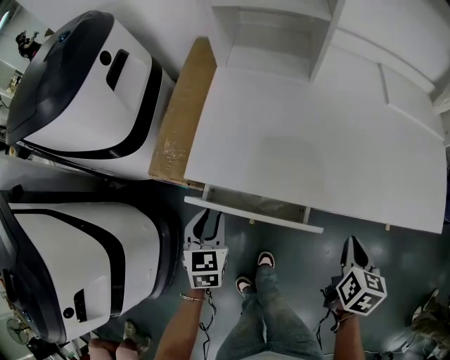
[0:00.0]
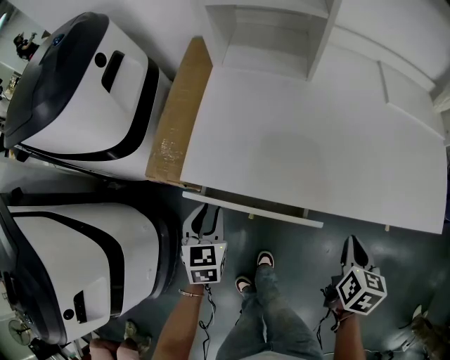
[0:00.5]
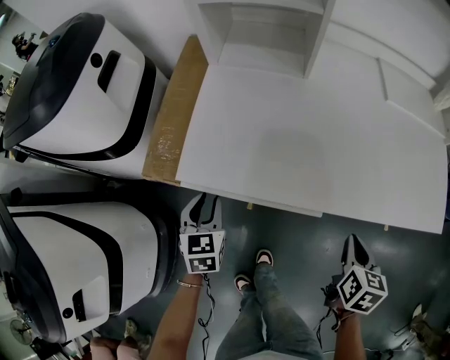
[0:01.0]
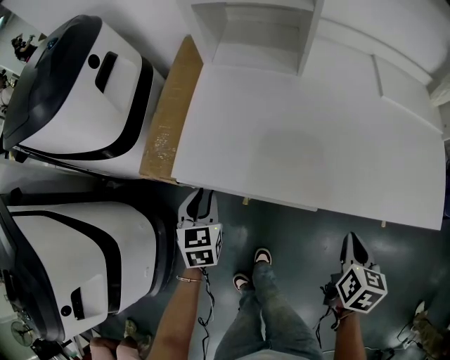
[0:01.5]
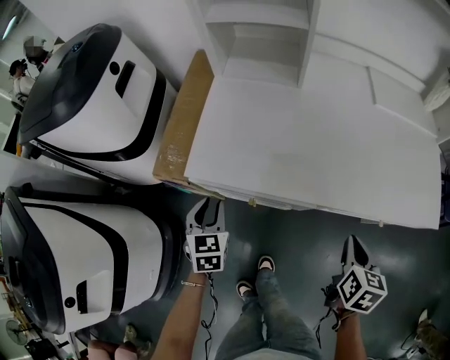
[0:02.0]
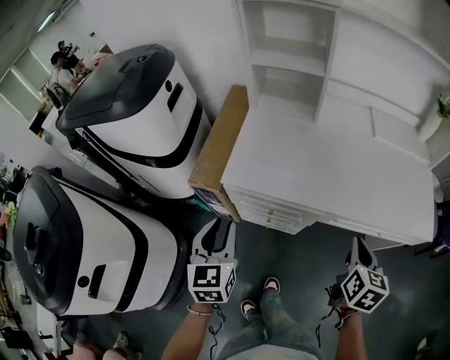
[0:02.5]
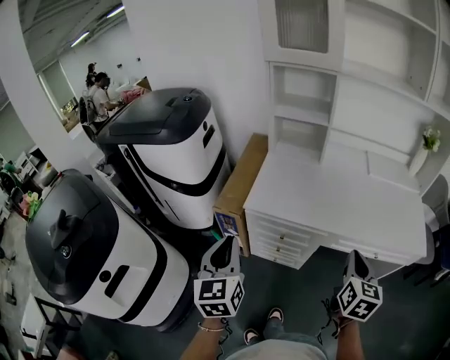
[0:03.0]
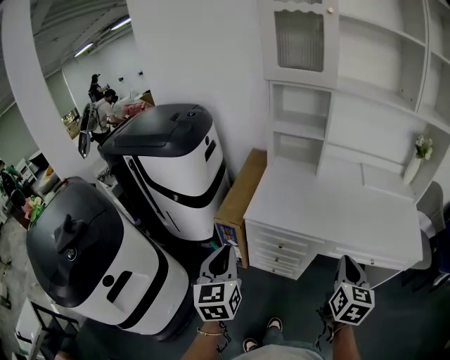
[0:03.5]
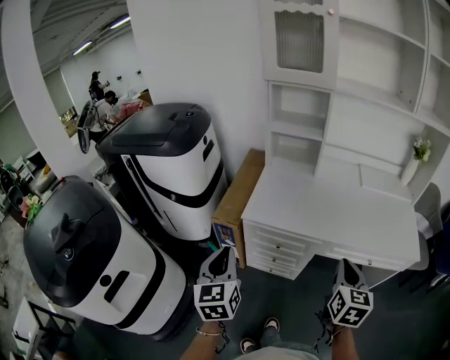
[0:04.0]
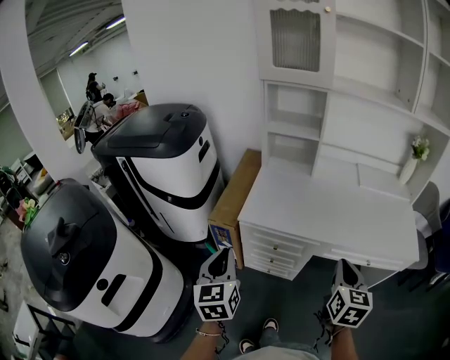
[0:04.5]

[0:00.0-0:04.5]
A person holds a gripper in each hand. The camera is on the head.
0:00.0 to 0:02.0: The grippers make only small movements.
0:02.0 to 0:04.5: The right gripper is displaced upward, to the left and backward by approximately 25 cm, and rotates approximately 30 degrees. Meanwhile the left gripper goes roughly 30 cm upward and backward, swivels about 30 degrees, and closes its fingers.

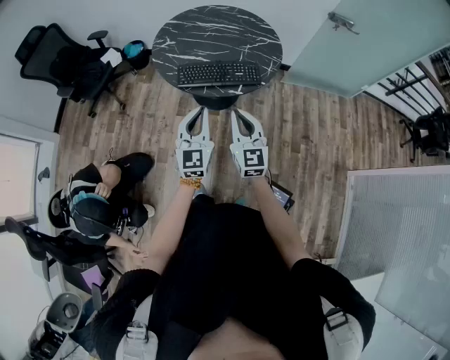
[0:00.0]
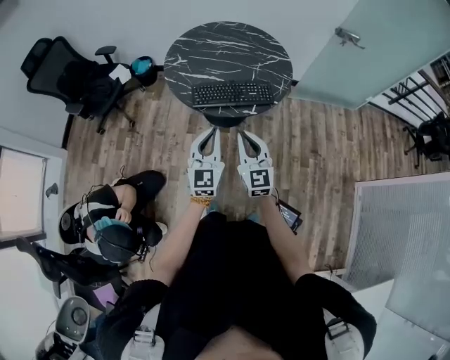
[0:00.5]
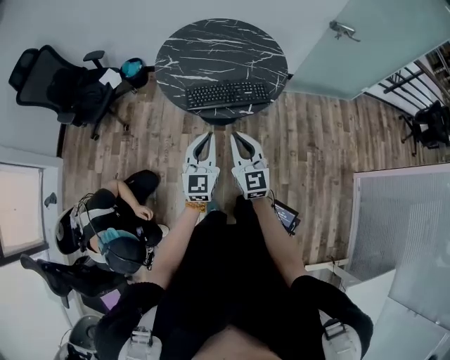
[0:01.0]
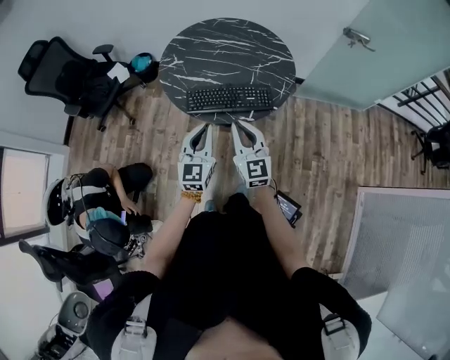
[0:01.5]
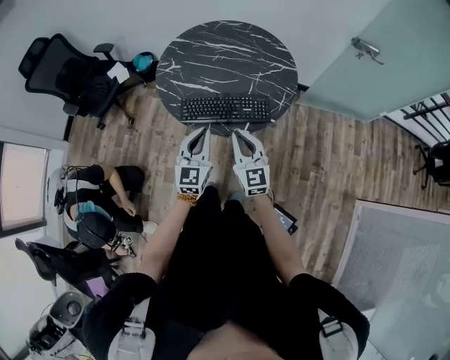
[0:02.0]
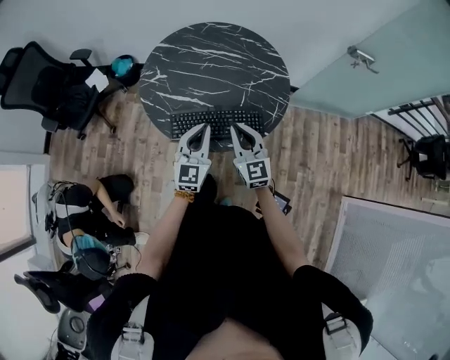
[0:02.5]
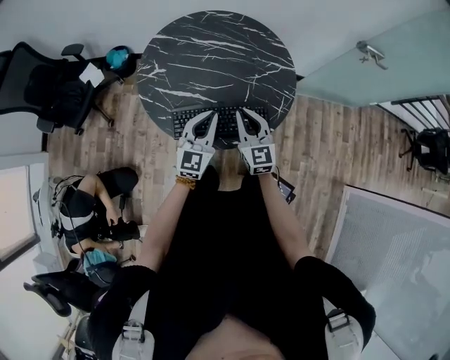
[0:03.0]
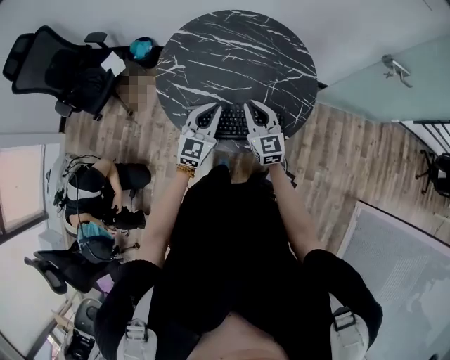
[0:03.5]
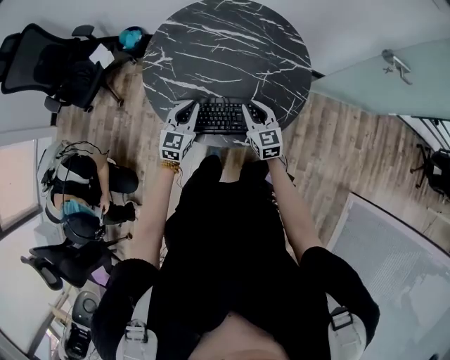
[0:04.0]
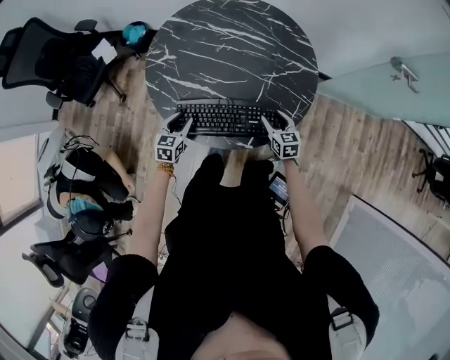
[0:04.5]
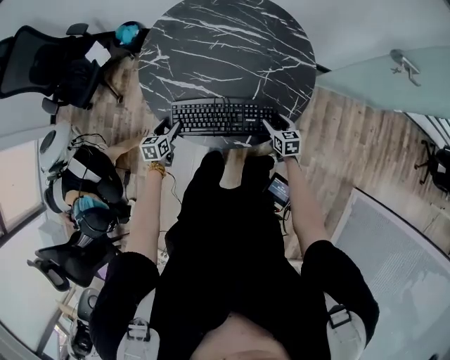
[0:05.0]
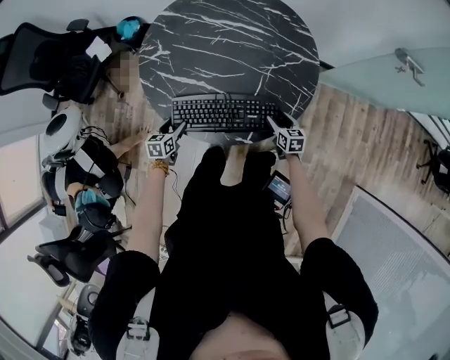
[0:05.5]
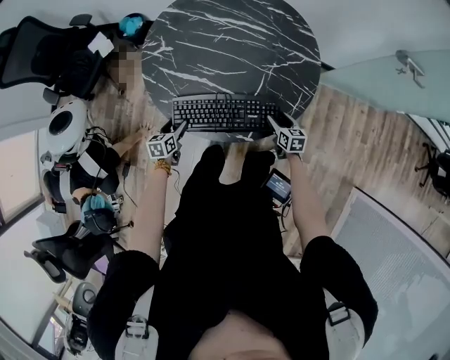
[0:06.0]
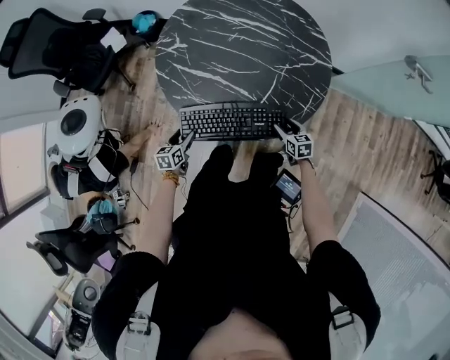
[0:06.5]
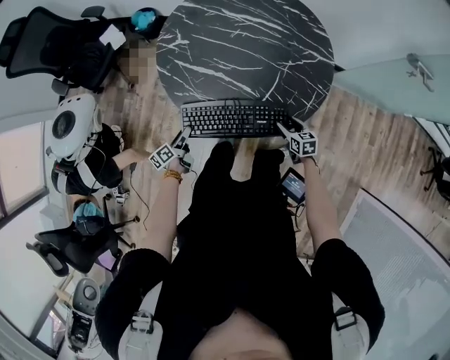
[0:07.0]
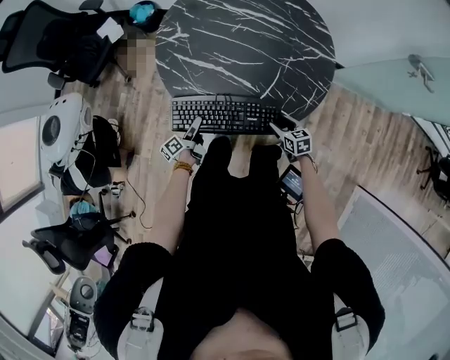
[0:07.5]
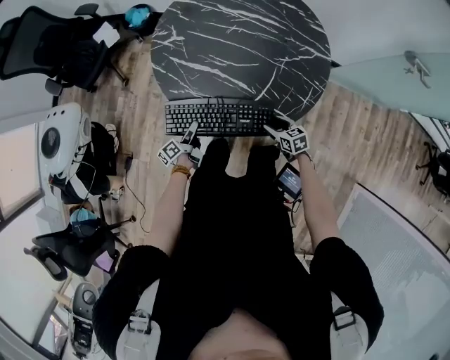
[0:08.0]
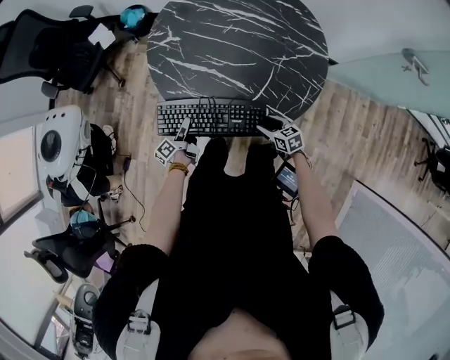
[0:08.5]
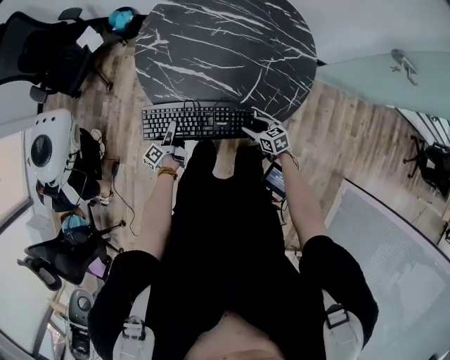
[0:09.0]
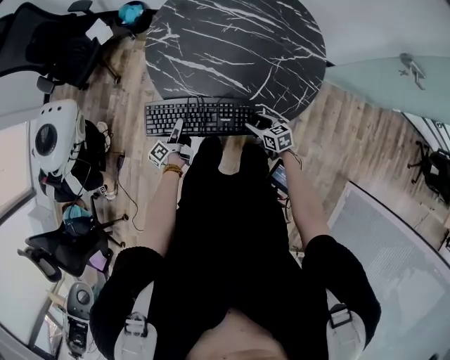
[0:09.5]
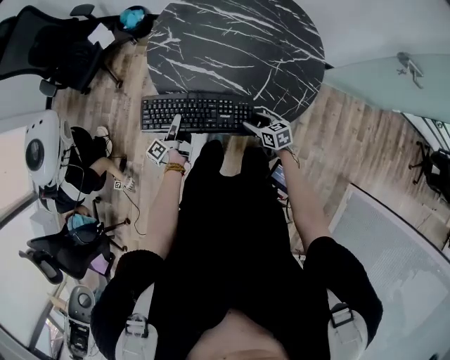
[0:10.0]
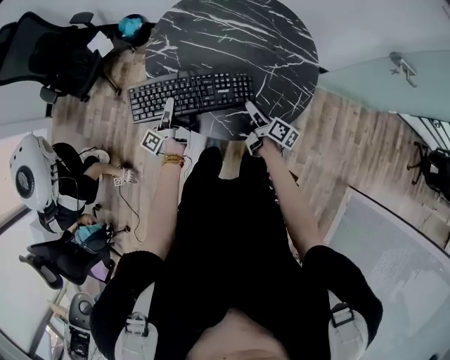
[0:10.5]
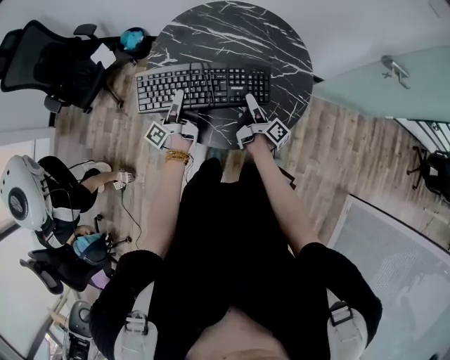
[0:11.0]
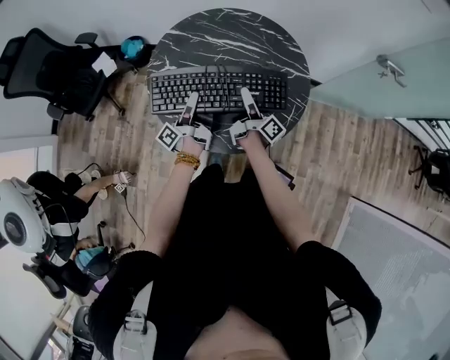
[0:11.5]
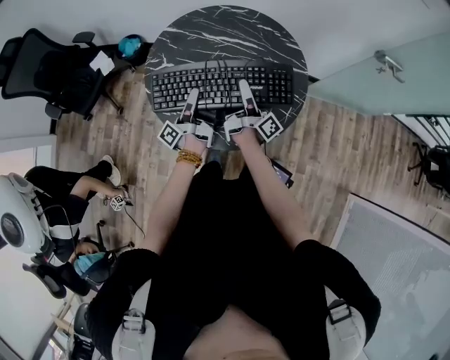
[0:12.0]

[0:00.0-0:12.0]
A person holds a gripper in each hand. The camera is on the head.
0:00.0 to 0:02.0: Both grippers move forward, roughly 15 cm.
0:02.0 to 0:04.0: The grippers both shift forward and downward by roughly 25 cm.
0:04.0 to 0:06.0: The right gripper shifts approximately 25 cm downward and to the right, turns by approximately 30 degrees, and opens up. The left gripper travels downward and to the left by approximately 20 cm, turns by roughly 40 degrees, and opens.
0:06.0 to 0:08.0: The left gripper shifts by roughly 5 cm, and rotates around the line of its fingers by approximately 50 degrees, counterclockwise from behind. Meanwhile the right gripper goes about 10 cm to the left and backward, and swivels some 20 degrees.
0:08.0 to 0:10.0: The right gripper goes roughly 5 cm to the left. The left gripper moves upward, roughly 5 cm.
0:10.0 to 0:12.0: The right gripper shifts roughly 30 cm upward and forward, and points its fingers approximately 60 degrees further upward; the left gripper goes roughly 25 cm upward, to the right and forward, and changes its angle by some 30 degrees.

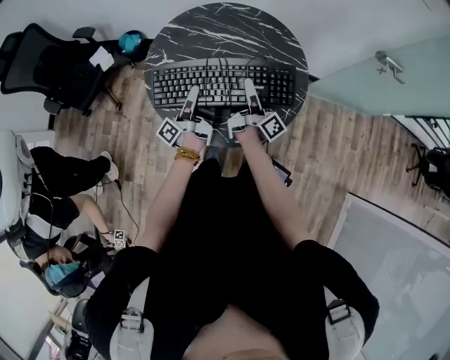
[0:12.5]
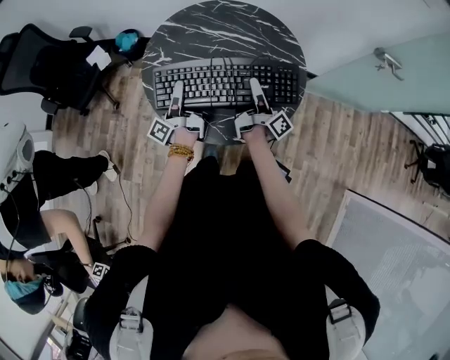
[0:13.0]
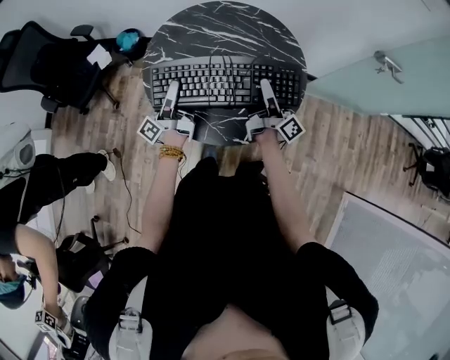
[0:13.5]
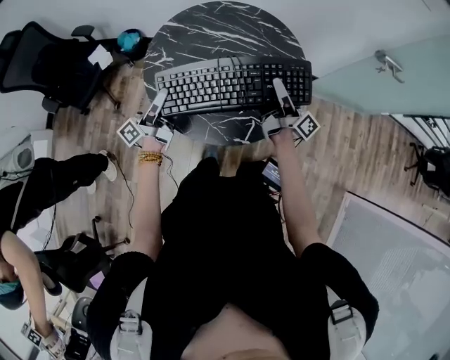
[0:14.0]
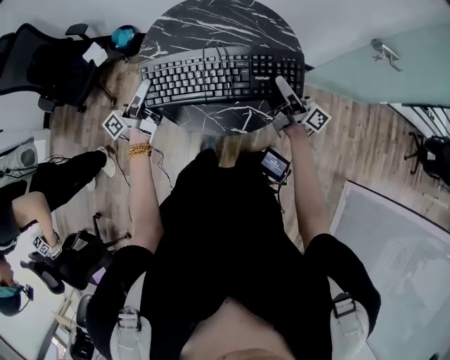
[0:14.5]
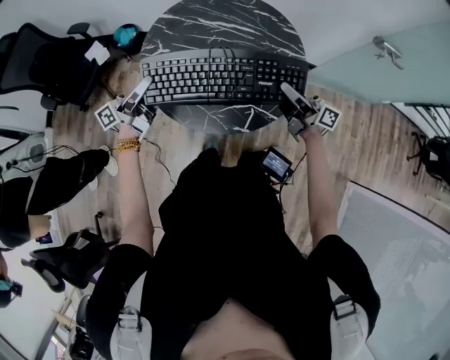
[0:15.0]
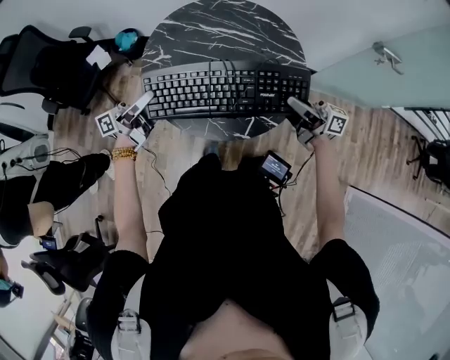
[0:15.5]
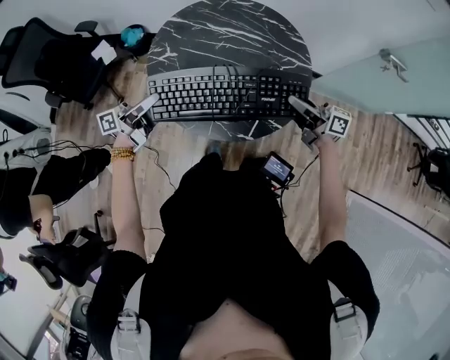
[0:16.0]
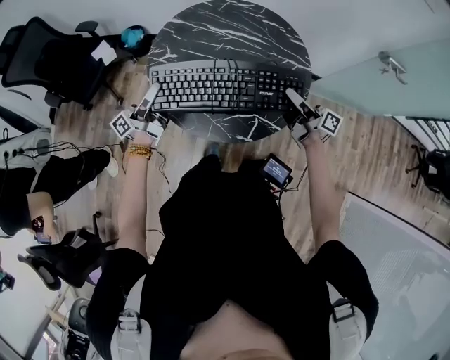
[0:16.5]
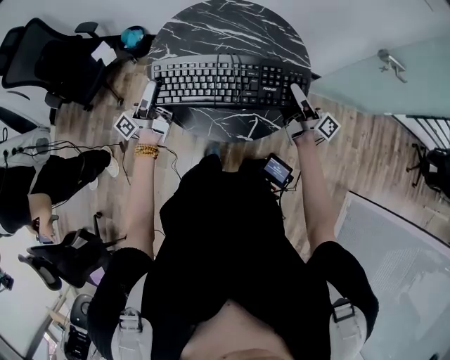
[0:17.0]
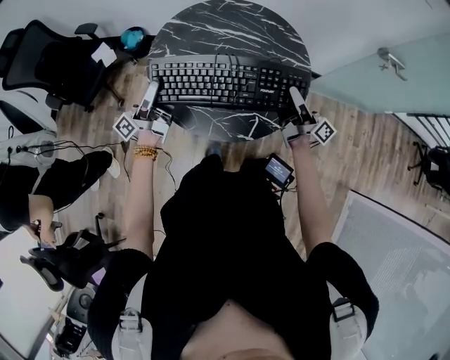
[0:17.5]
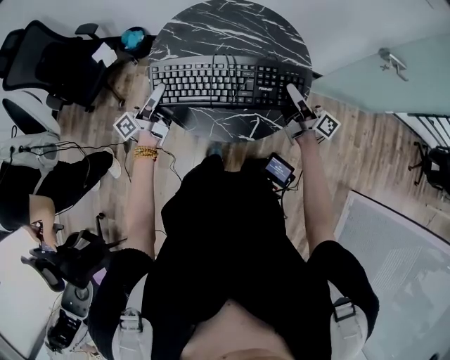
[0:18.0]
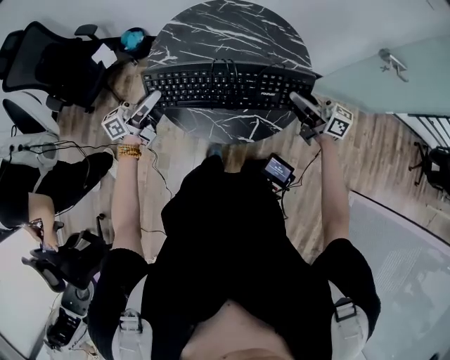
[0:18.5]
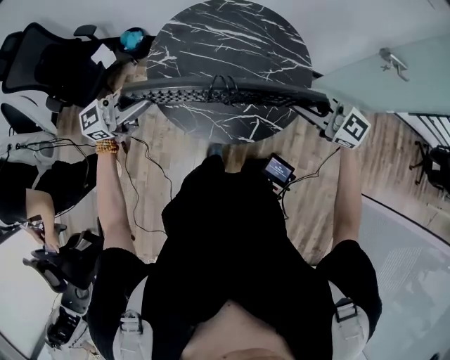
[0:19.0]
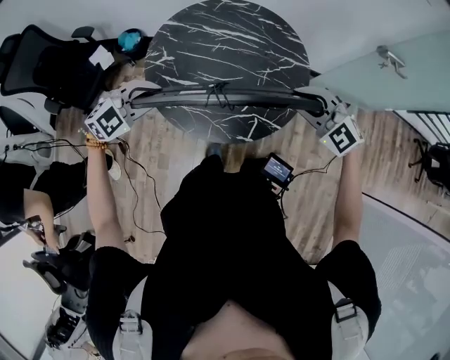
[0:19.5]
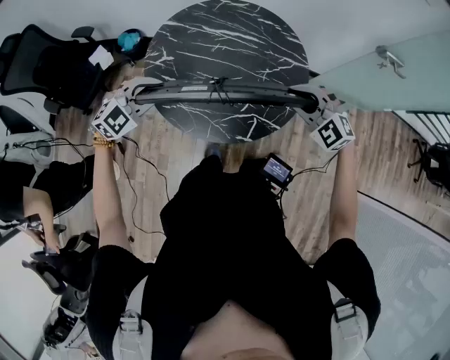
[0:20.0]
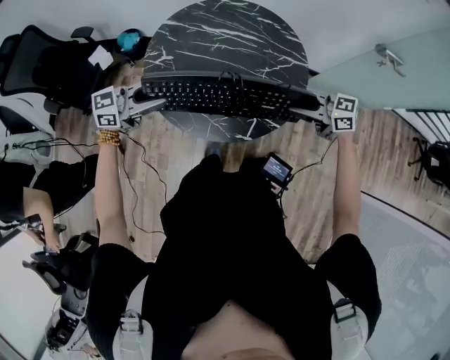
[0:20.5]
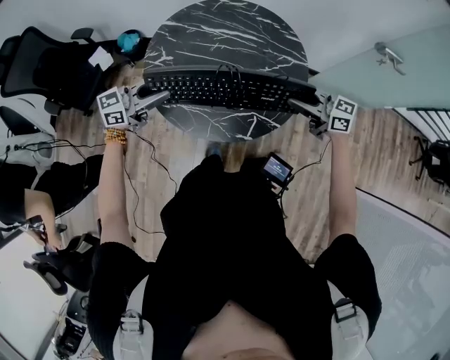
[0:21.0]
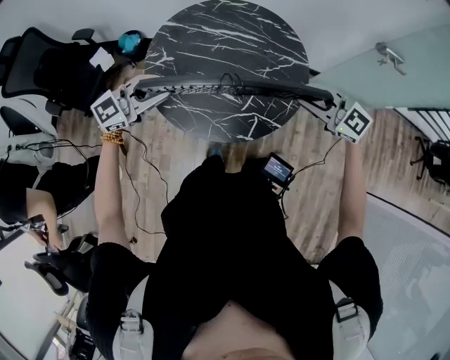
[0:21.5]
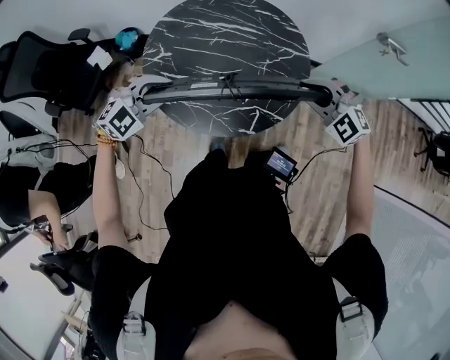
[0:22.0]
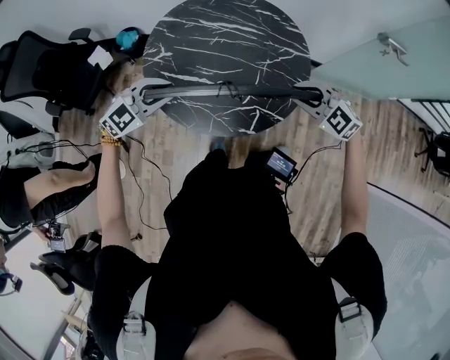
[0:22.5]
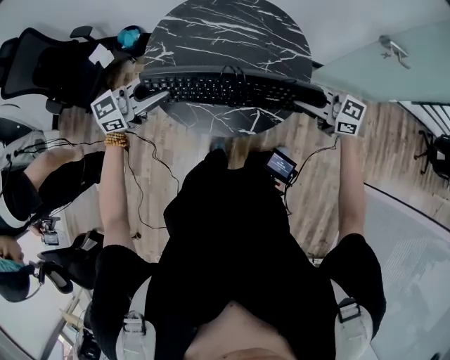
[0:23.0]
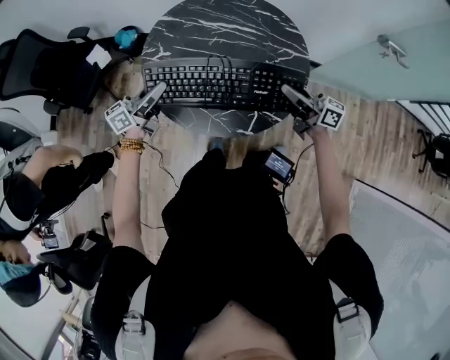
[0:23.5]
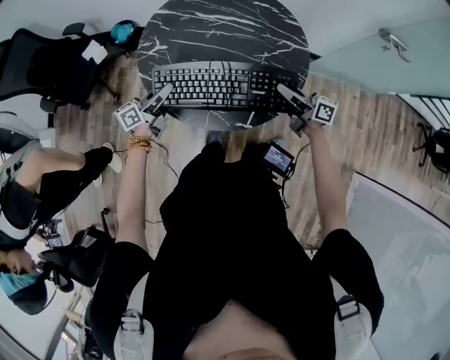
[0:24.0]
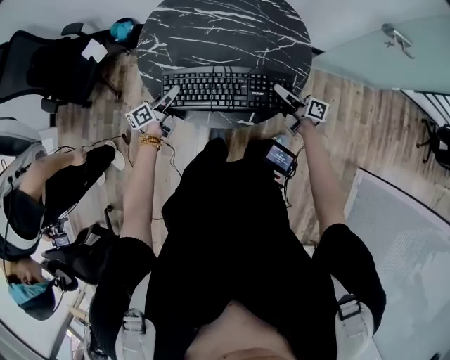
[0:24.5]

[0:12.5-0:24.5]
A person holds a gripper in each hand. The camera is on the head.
0:12.5 to 0:14.5: The right gripper heads to the right and upward, covering roughly 10 cm, and swivels approximately 30 degrees. The left gripper goes some 15 cm to the left and upward, and rotates some 20 degrees.
0:14.5 to 0:16.5: The right gripper heads downward, covering some 5 cm.
0:16.5 to 0:18.5: The right gripper moves about 5 cm, and swivels approximately 30 degrees; the left gripper rotates about 20 degrees, and opens, then closes once more.
0:18.5 to 0:20.5: The left gripper goes upward and returns, roughly 10 cm each way, and rotates about 50 degrees; the right gripper moves about 5 cm, and swivels about 40 degrees.
0:20.5 to 0:22.5: The right gripper rotates roughly 50 degrees; the left gripper swivels some 50 degrees.
0:22.5 to 0:24.5: Both grippers move downward, approximately 15 cm. The right gripper twists about 90 degrees clockwise, seen from behind. The left gripper rotates around the line of its fingers by about 90 degrees, counterclockwise from behind.
